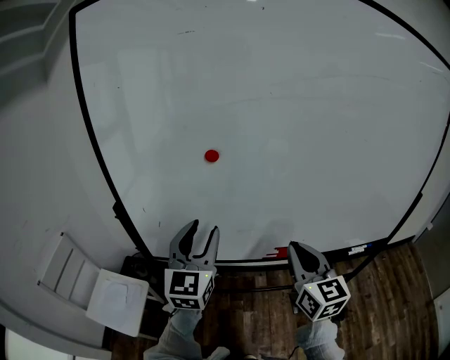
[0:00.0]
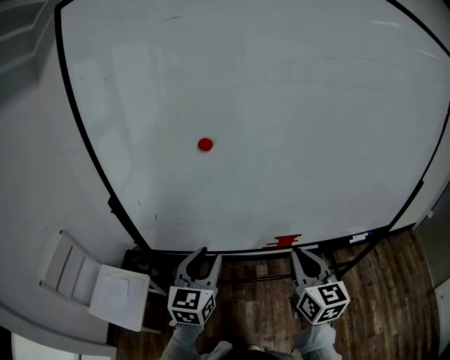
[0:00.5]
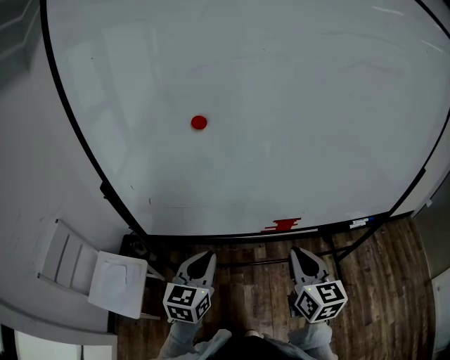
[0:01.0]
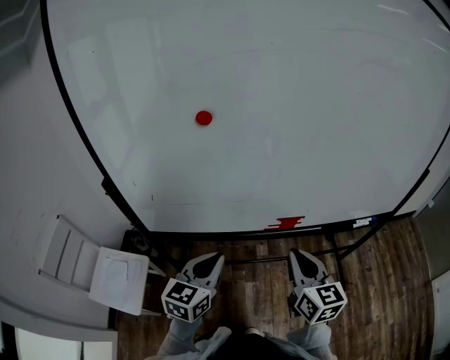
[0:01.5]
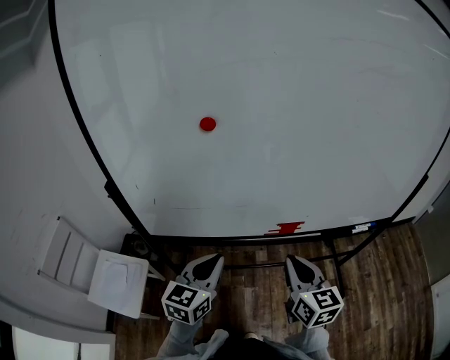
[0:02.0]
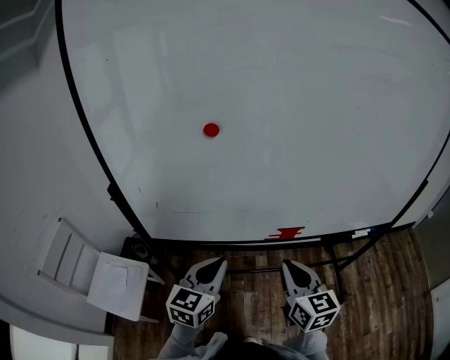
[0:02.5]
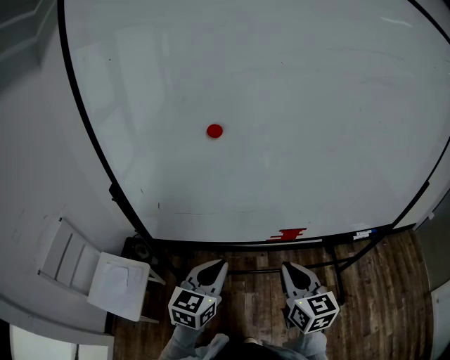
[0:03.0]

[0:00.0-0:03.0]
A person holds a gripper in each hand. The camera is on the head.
0.0 to 1.5 s: The left gripper goes some 15 cm downward, changes its angle by about 30 degrees, and closes its fingers, while the right gripper heads downward, covering approximately 10 cm.
1.5 to 3.0 s: There are only small adjustments of the grippers.

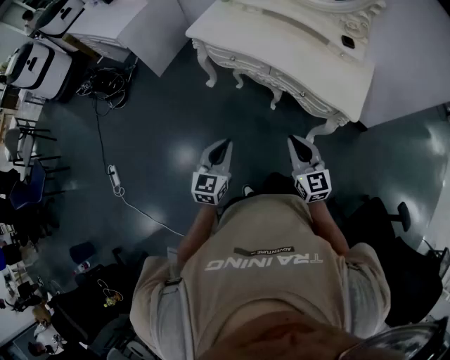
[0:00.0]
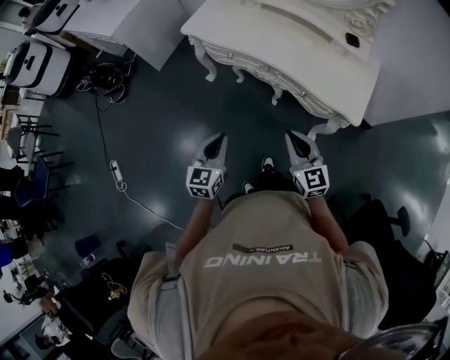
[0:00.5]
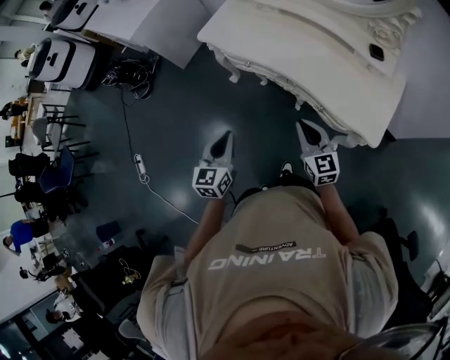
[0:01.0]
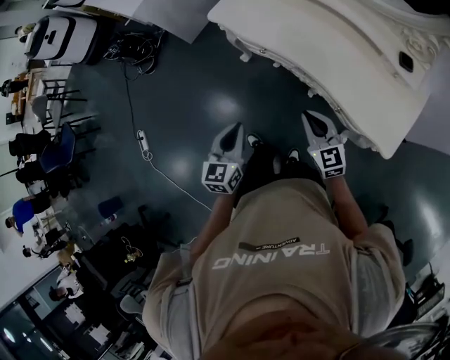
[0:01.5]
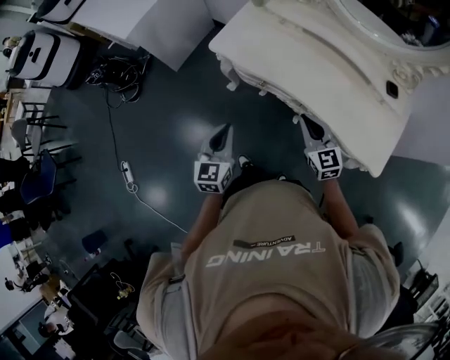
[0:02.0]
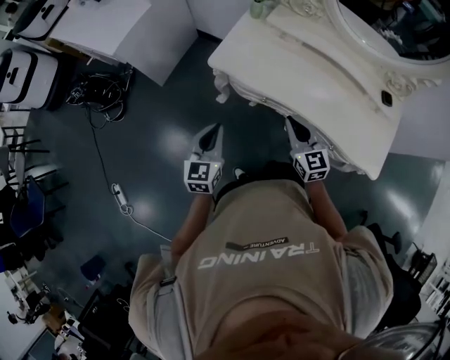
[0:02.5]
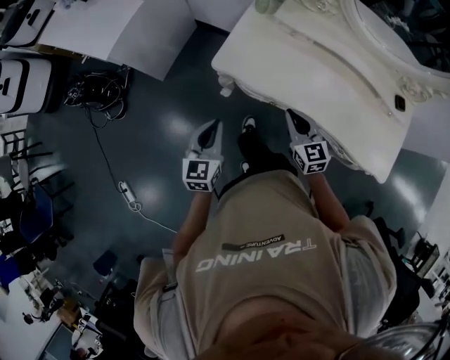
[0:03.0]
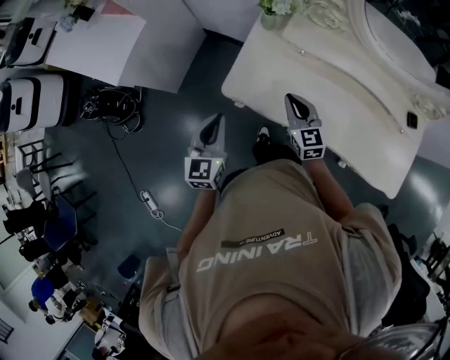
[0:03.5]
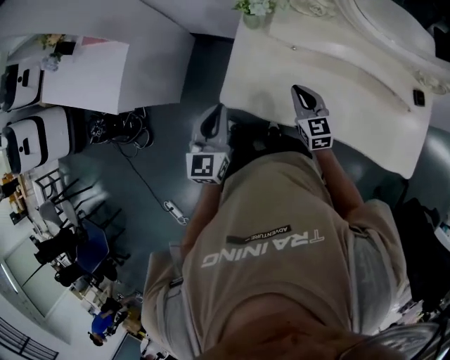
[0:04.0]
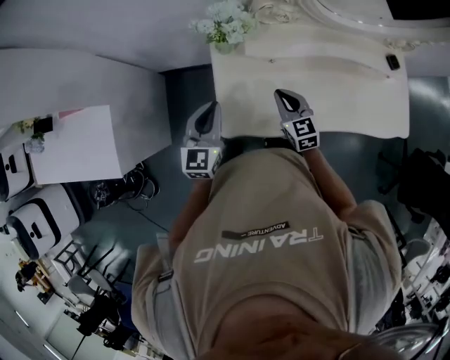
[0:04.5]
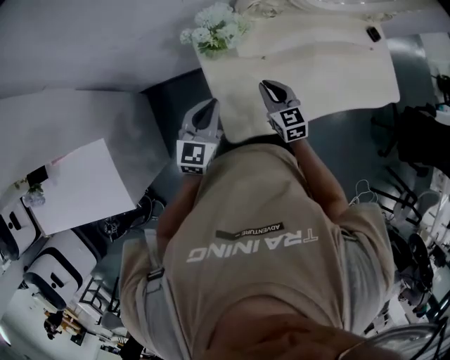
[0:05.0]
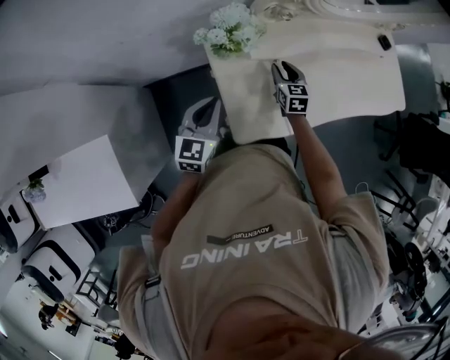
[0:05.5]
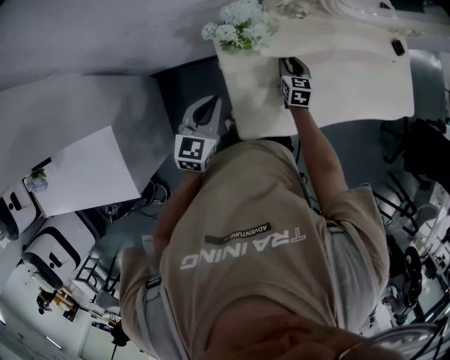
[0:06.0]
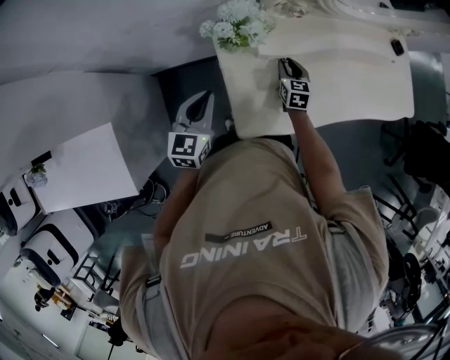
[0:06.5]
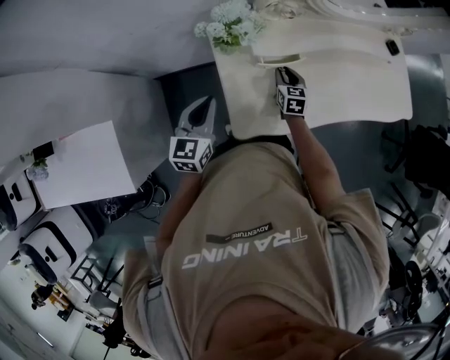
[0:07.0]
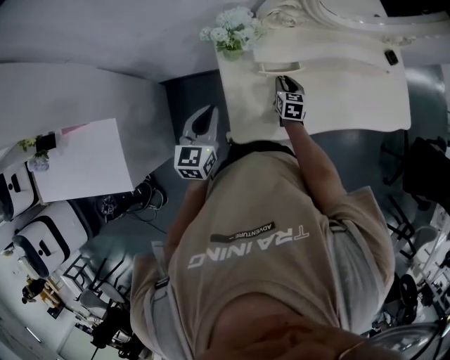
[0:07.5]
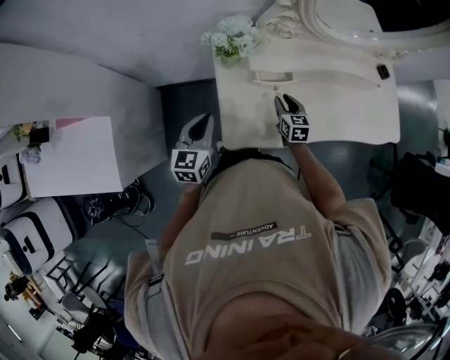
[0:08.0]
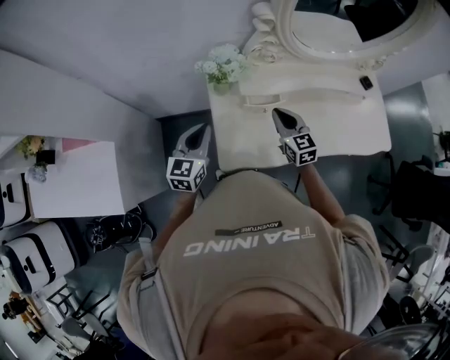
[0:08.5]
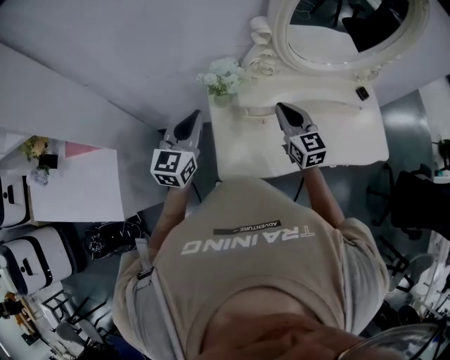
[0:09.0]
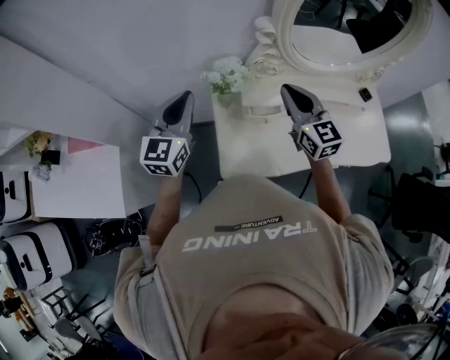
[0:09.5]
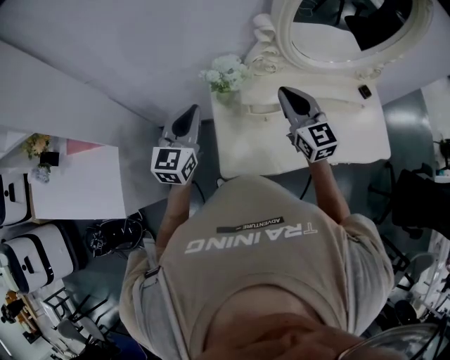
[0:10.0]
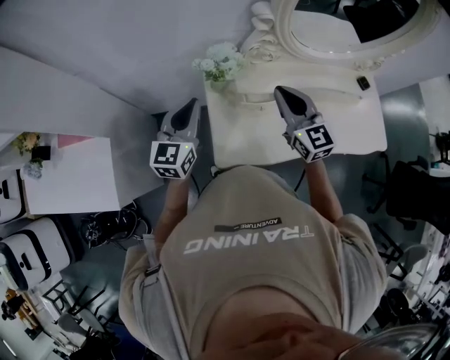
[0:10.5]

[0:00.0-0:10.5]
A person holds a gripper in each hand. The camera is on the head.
0.0 to 2.0 s: The grippers both shift forward by about 35 cm.
2.0 to 4.0 s: Both grippers move forward, about 40 cm. The right gripper turns by about 20 degrees.
4.0 to 6.5 s: The right gripper moves some 20 cm, rotates approximately 50 degrees, and opens its fingers, while the left gripper moves some 25 cm, and changes its angle by some 40 degrees.
6.5 to 8.5 s: The right gripper moves upward and backward, about 20 cm, rotates some 30 degrees, and closes up, while the left gripper goes some 10 cm upward and backward.
8.5 to 10.5 s: The left gripper is displaced upward by roughly 10 cm; the right gripper travels upward by approximately 15 cm.

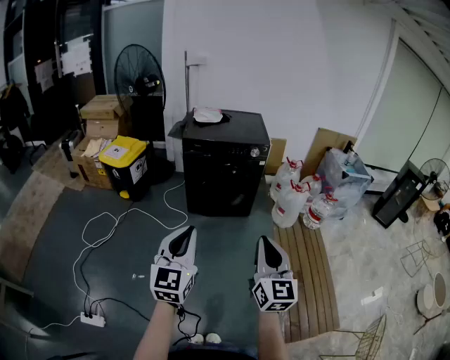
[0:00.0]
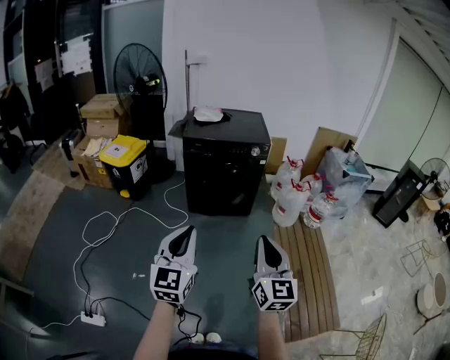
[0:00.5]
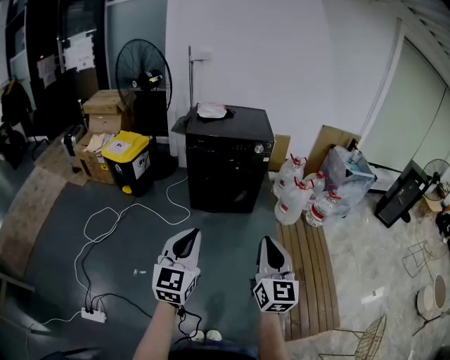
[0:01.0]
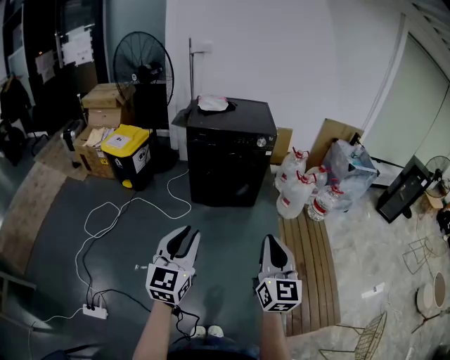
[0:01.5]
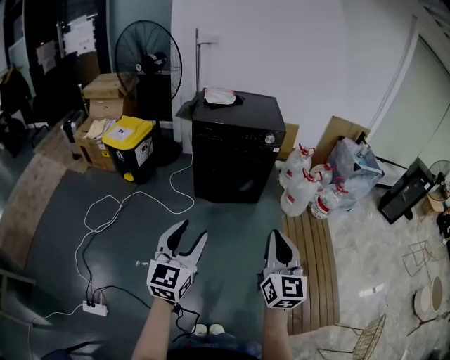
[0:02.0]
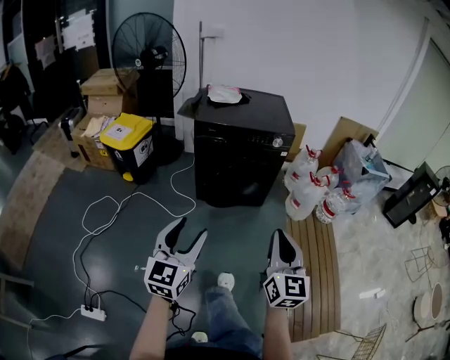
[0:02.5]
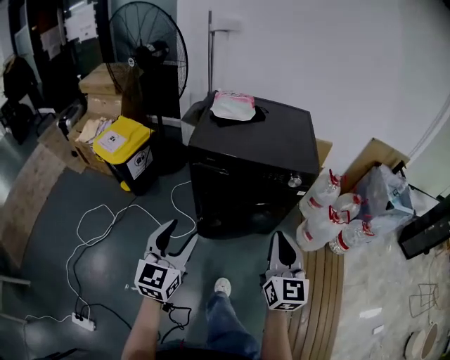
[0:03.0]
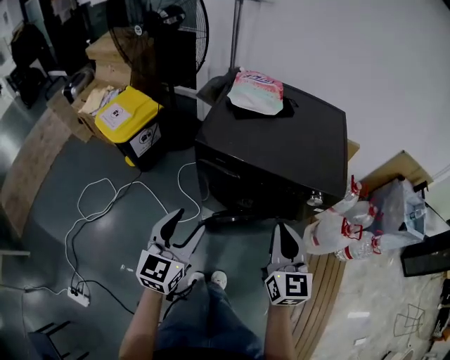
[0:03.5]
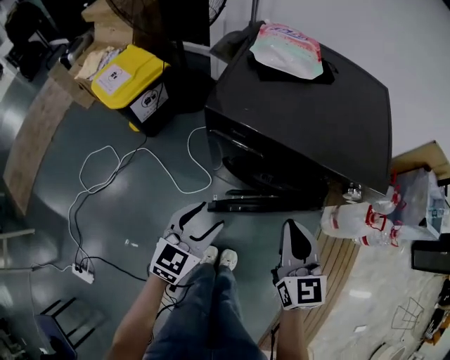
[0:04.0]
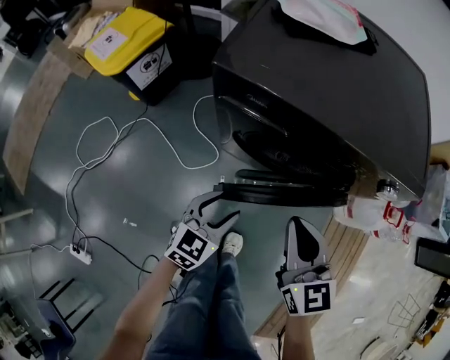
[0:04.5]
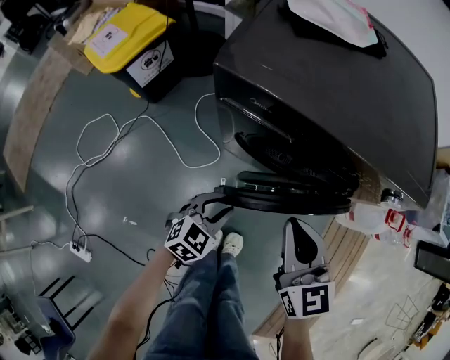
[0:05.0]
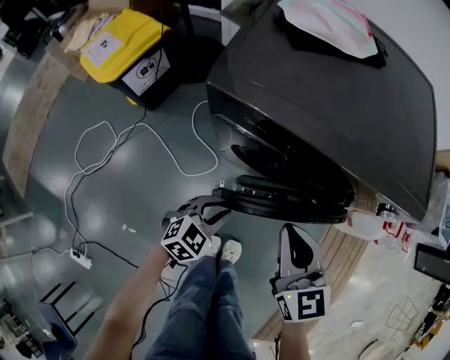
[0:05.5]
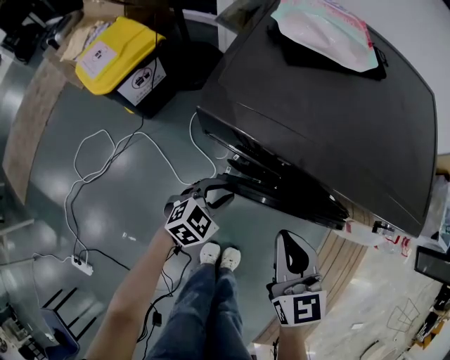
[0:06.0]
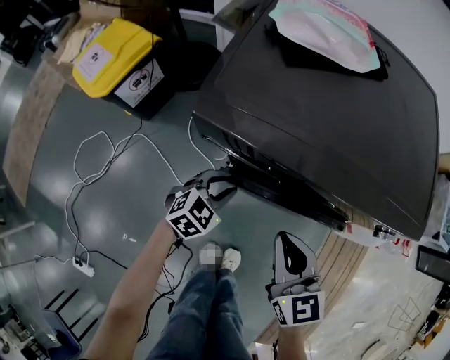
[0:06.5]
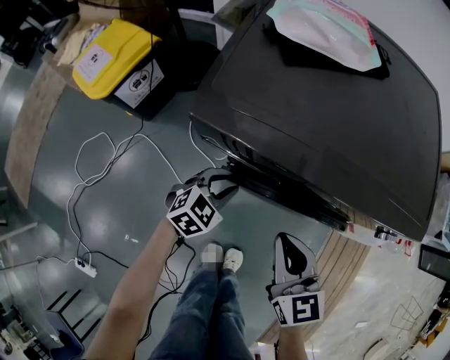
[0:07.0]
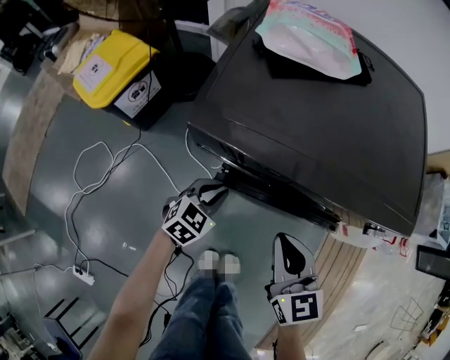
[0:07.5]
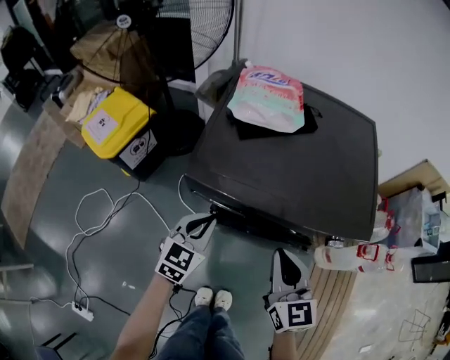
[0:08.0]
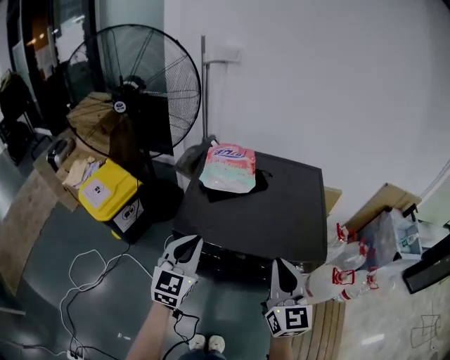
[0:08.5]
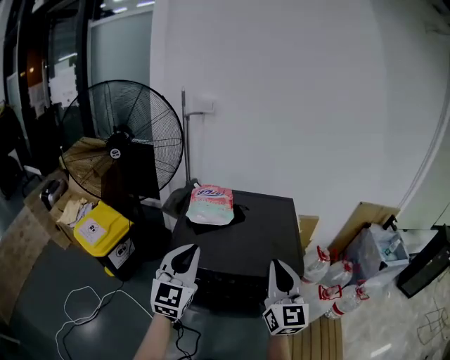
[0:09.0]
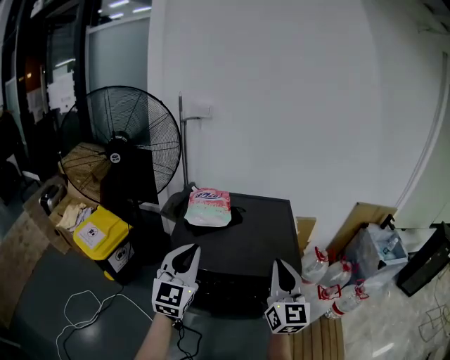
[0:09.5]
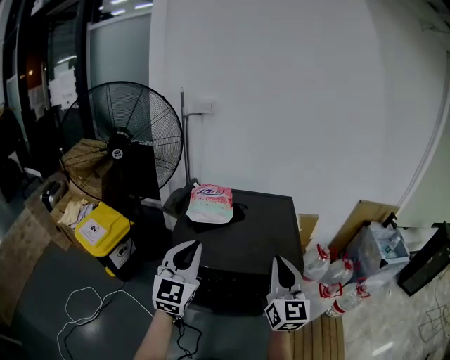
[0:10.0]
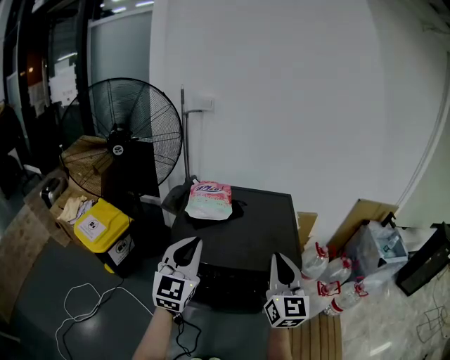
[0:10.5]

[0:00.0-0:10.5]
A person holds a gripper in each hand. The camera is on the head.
0.0 to 2.0 s: The left gripper travels downward by approximately 5 cm, and opens its fingers. Meanwhile the right gripper changes place by roughly 5 cm.
2.0 to 4.0 s: Both grippers are carried forward, some 60 cm. The left gripper goes approximately 25 cm downward, and changes its angle by approximately 20 degrees, while the right gripper swivels about 30 degrees.
4.0 to 6.5 s: The left gripper is displaced downward and forward by roughly 25 cm, changes its angle by approximately 30 degrees, and closes its fingers. The right gripper heads downward, forward and to the left, covering about 15 cm.
6.5 to 8.5 s: The two grippers go approximately 35 cm upward. The left gripper tilts its fingers roughly 30 degrees upward, and closes. Meanwhile the right gripper swivels roughly 30 degrees.
8.5 to 10.5 s: The left gripper heads upward, covering about 15 cm. The right gripper shifts roughly 10 cm upward and to the right.

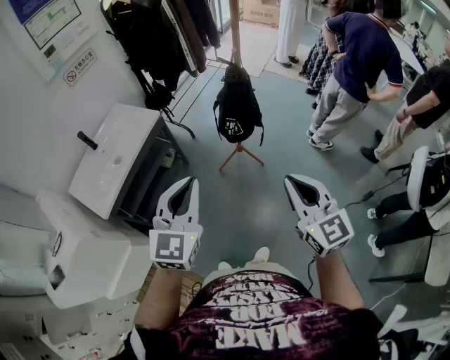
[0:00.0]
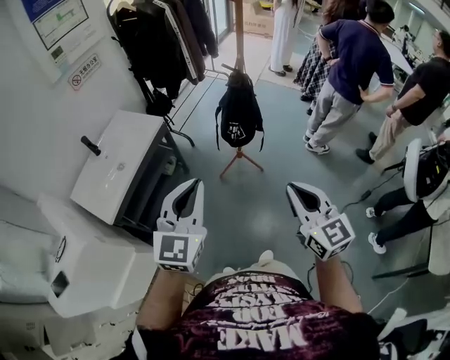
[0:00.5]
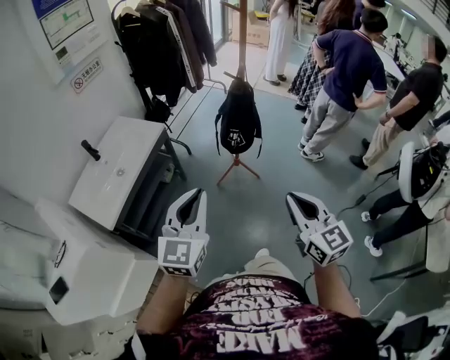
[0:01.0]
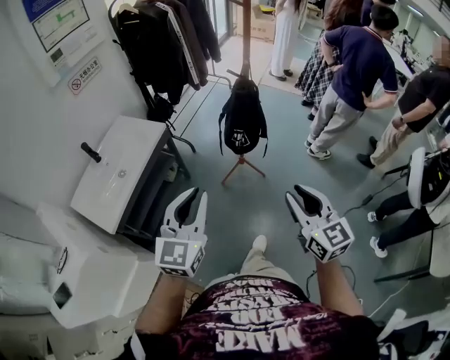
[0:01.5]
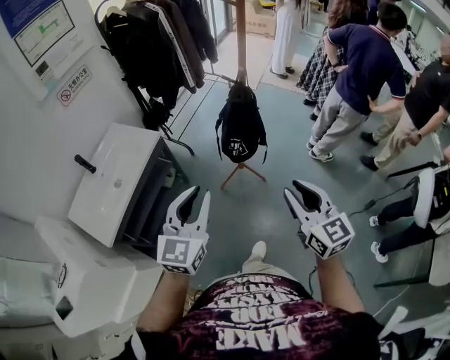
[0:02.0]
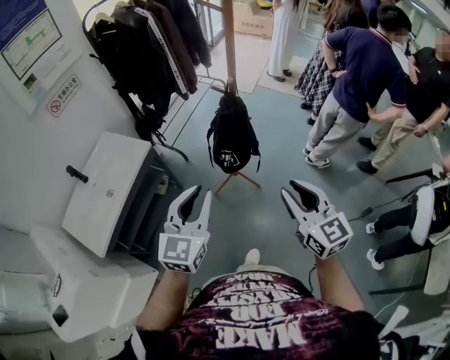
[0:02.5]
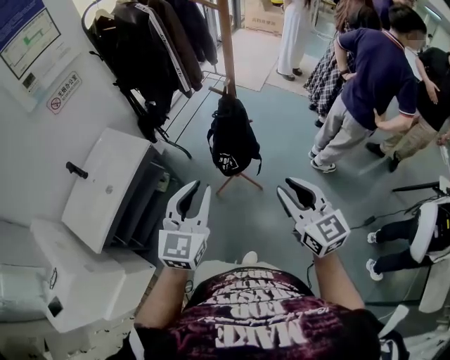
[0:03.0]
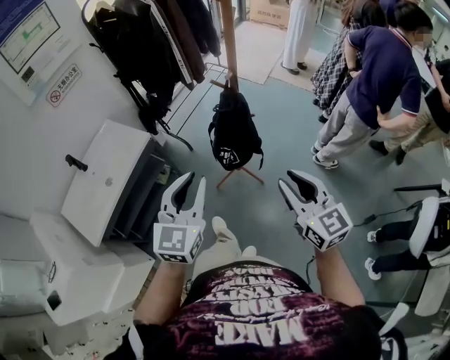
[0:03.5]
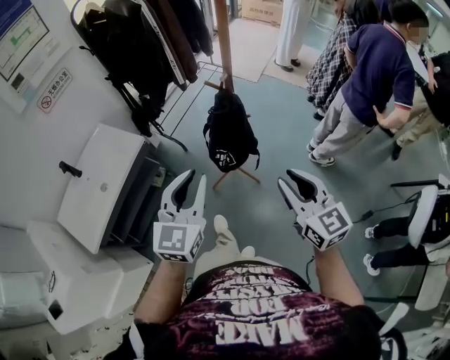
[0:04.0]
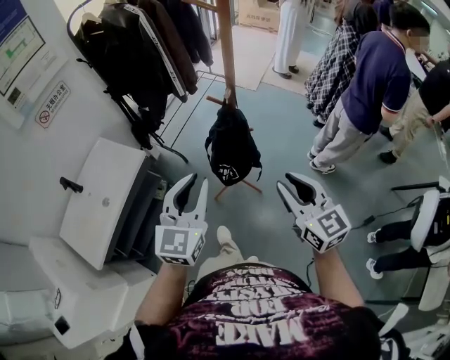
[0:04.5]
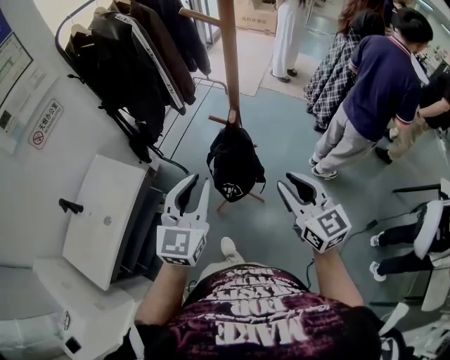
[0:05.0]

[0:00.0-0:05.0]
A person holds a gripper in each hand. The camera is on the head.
0.0 to 2.5 s: The two grippers go about 15 cm forward. The right gripper opens up.
2.5 to 5.0 s: The two grippers go some 20 cm forward.
